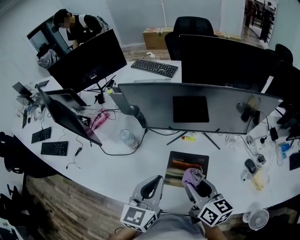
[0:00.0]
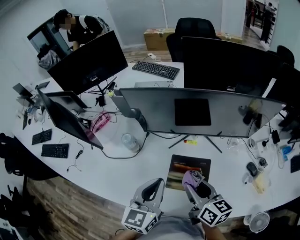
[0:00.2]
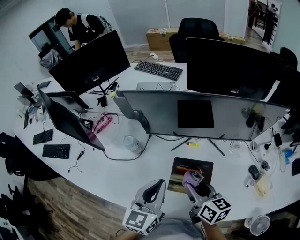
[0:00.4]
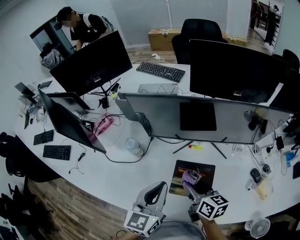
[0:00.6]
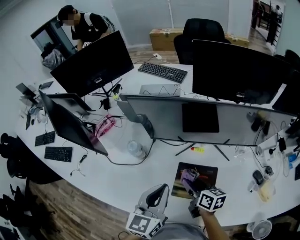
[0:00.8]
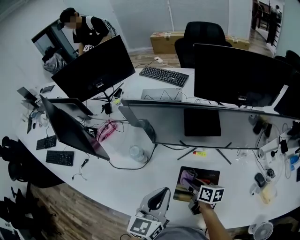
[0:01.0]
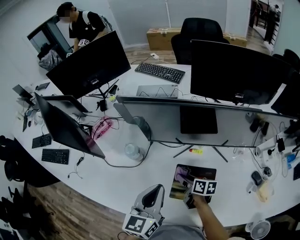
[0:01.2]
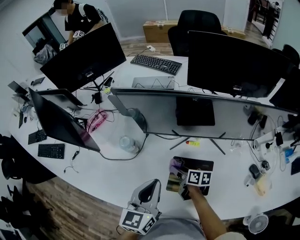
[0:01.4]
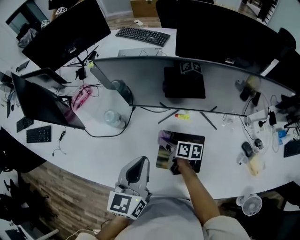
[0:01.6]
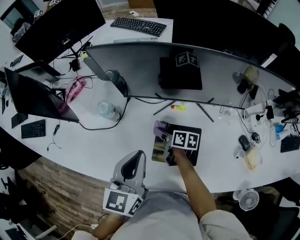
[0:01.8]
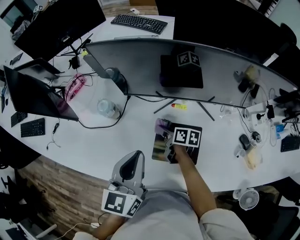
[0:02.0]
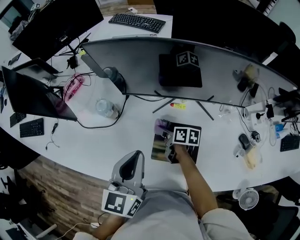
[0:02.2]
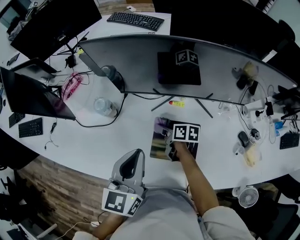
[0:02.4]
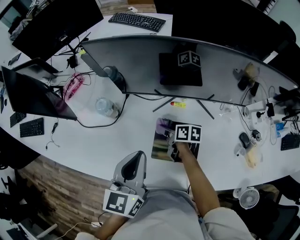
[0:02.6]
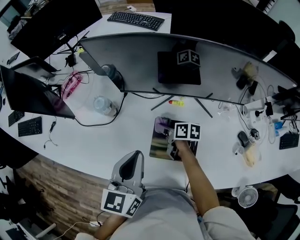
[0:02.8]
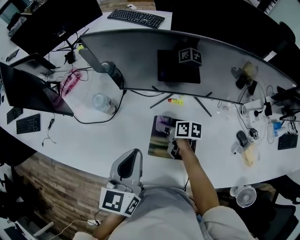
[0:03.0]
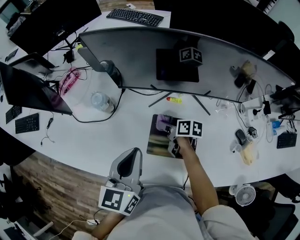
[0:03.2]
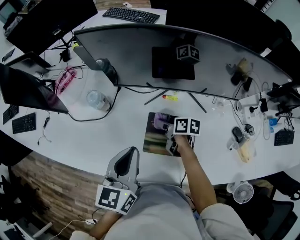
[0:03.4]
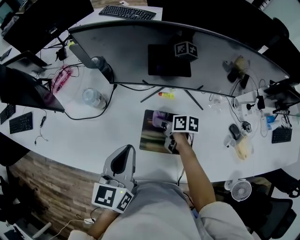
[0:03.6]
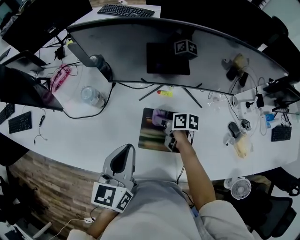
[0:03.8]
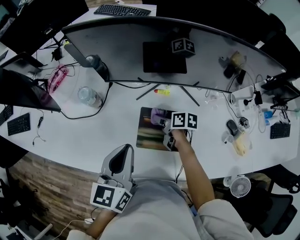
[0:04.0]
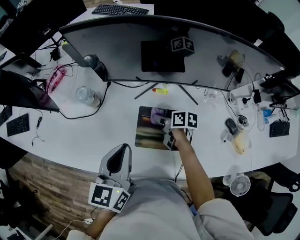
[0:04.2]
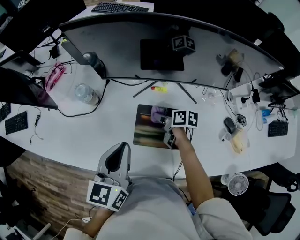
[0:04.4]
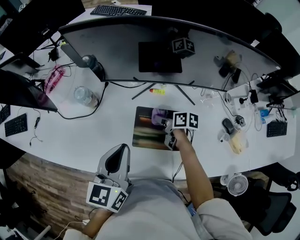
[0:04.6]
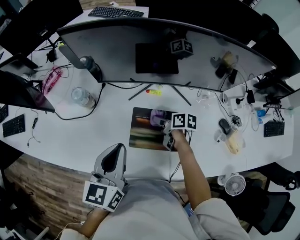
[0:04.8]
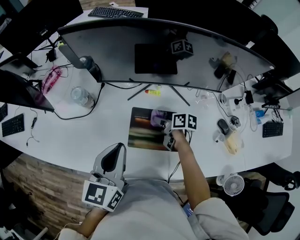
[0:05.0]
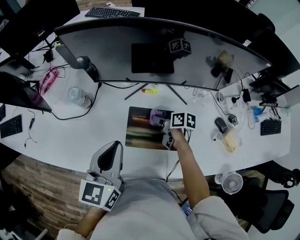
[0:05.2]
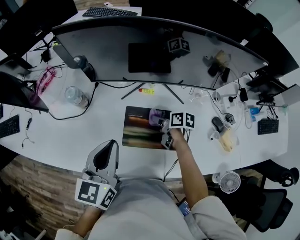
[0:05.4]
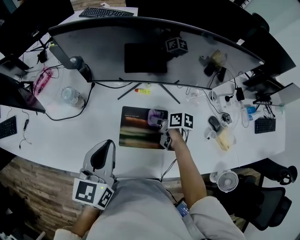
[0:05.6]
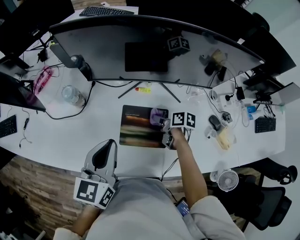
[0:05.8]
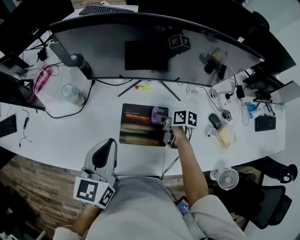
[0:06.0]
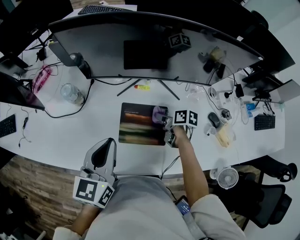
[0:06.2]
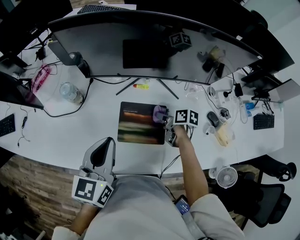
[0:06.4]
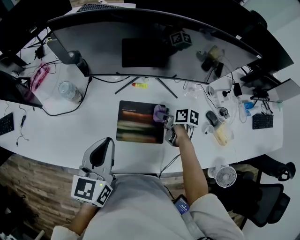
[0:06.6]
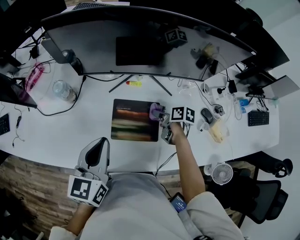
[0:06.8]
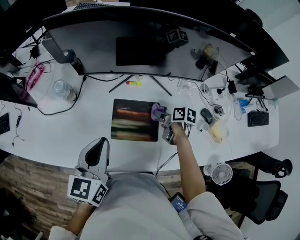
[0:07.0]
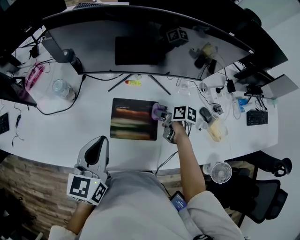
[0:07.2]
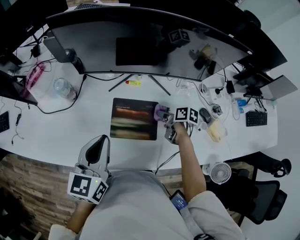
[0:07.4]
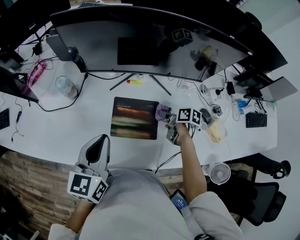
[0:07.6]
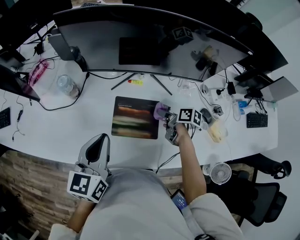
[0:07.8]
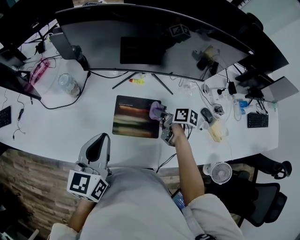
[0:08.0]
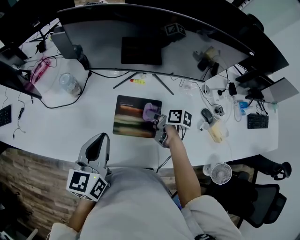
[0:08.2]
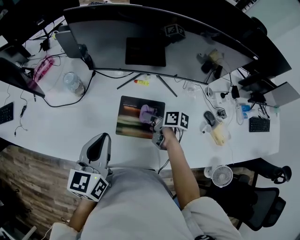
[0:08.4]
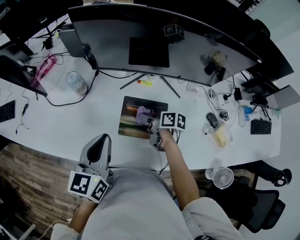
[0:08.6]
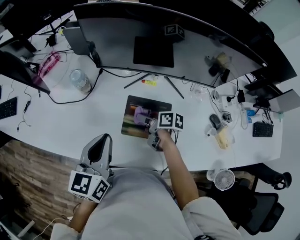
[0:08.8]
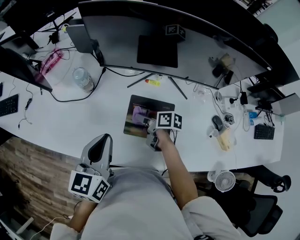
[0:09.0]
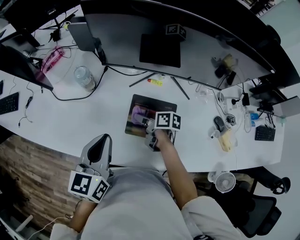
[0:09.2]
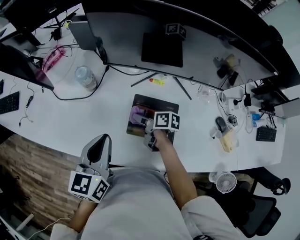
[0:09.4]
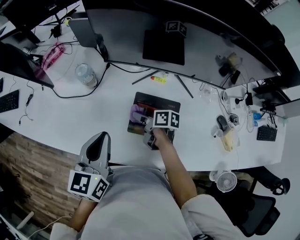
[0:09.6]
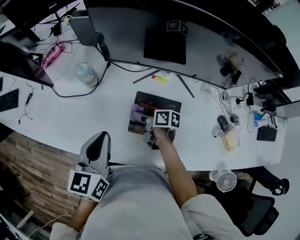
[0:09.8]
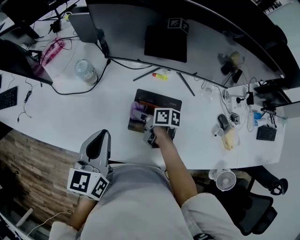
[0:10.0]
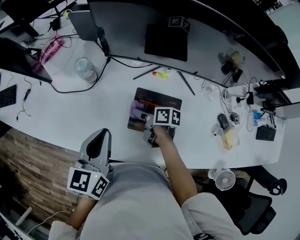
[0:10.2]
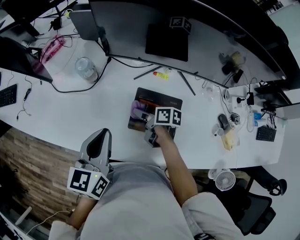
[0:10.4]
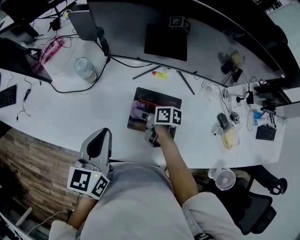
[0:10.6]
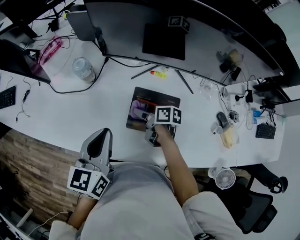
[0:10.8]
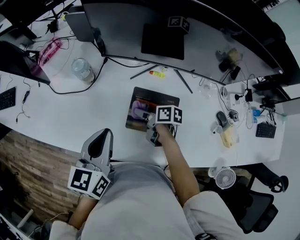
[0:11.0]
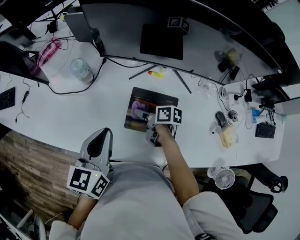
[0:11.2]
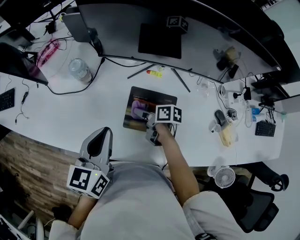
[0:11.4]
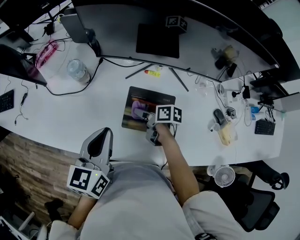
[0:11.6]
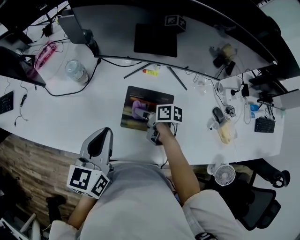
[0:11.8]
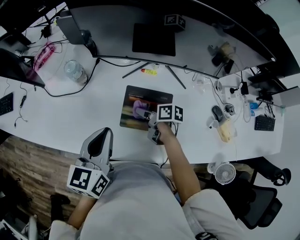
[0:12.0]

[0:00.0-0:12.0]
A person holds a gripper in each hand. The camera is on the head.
0:00.0 to 0:01.6: The left gripper is displaced forward by approximately 5 cm, while the right gripper heads downward and forward, covering about 25 cm, and swivels roughly 30 degrees.
0:01.6 to 0:03.0: The grippers make only small movements.
0:03.0 to 0:04.4: The right gripper changes place by approximately 5 cm.
0:04.4 to 0:06.0: The right gripper shifts approximately 5 cm to the right.
0:06.0 to 0:07.6: The right gripper moves to the right, some 5 cm.
0:07.6 to 0:09.0: The right gripper shifts about 20 cm to the left, while the left gripper heads to the left, covering roughly 5 cm.
0:09.0 to 0:10.4: The grippers stay close to where they were, moving slightly.
0:10.4 to 0:12.0: The right gripper heads to the right, covering roughly 5 cm.

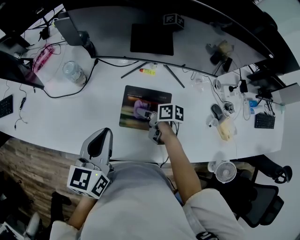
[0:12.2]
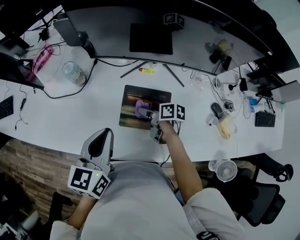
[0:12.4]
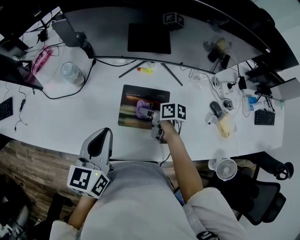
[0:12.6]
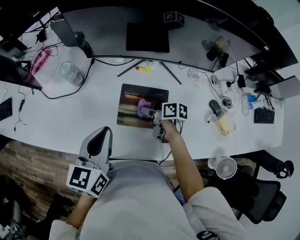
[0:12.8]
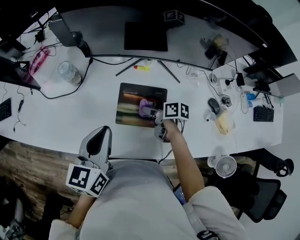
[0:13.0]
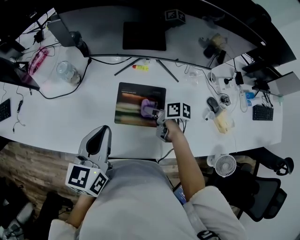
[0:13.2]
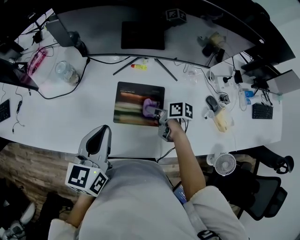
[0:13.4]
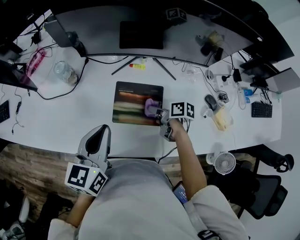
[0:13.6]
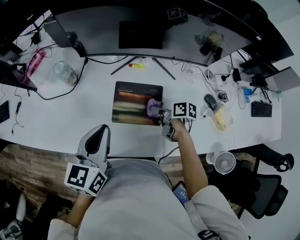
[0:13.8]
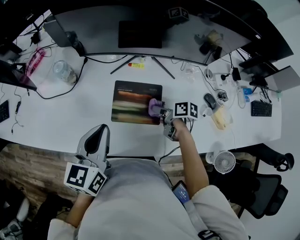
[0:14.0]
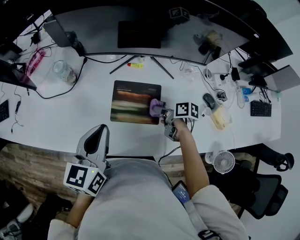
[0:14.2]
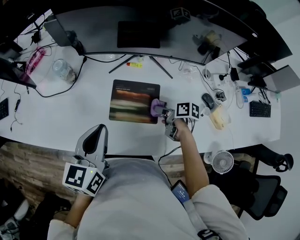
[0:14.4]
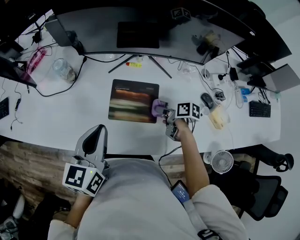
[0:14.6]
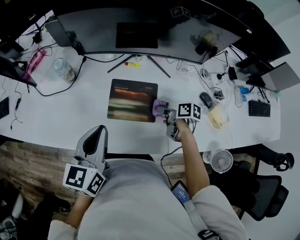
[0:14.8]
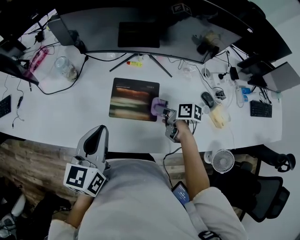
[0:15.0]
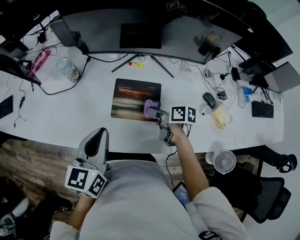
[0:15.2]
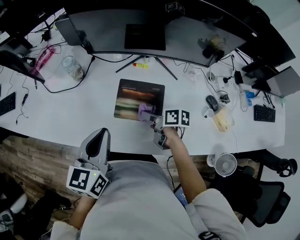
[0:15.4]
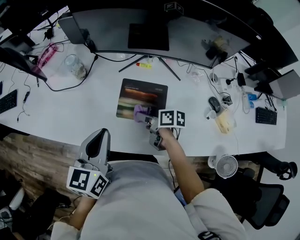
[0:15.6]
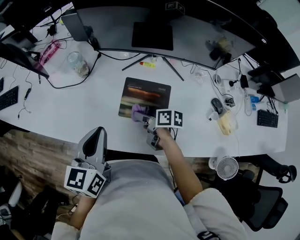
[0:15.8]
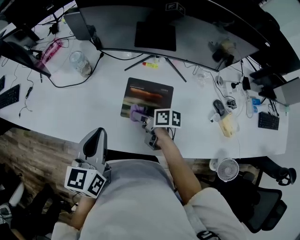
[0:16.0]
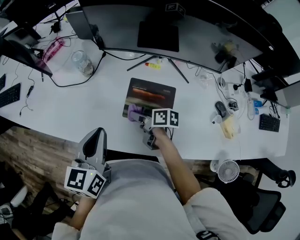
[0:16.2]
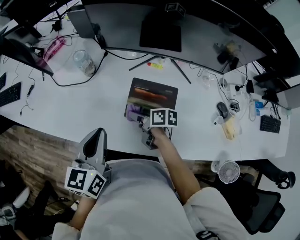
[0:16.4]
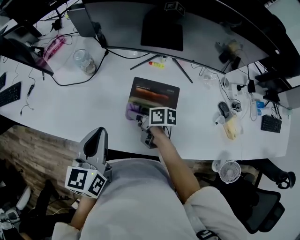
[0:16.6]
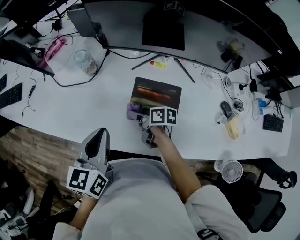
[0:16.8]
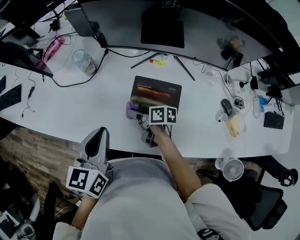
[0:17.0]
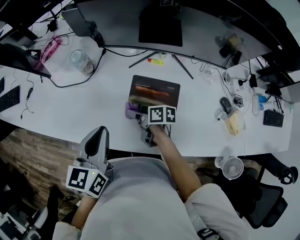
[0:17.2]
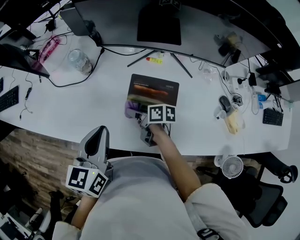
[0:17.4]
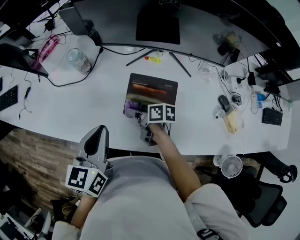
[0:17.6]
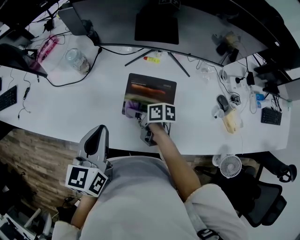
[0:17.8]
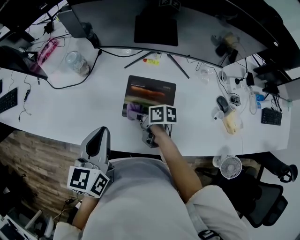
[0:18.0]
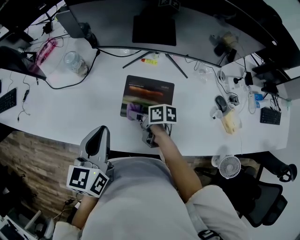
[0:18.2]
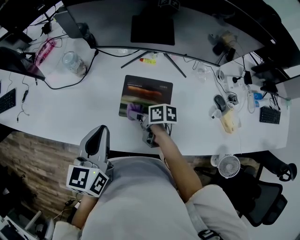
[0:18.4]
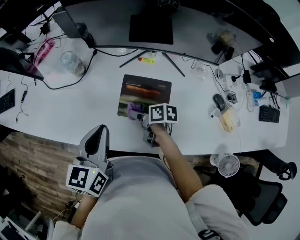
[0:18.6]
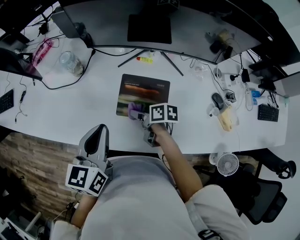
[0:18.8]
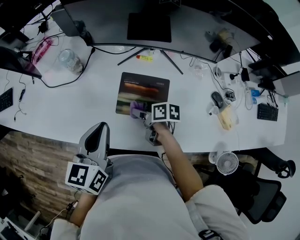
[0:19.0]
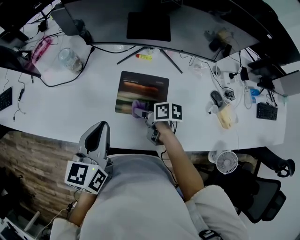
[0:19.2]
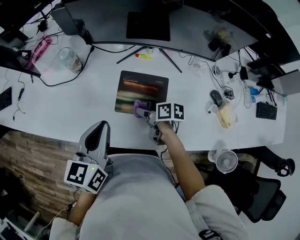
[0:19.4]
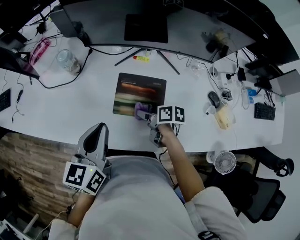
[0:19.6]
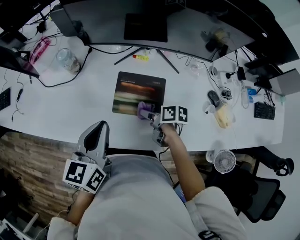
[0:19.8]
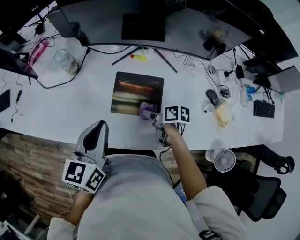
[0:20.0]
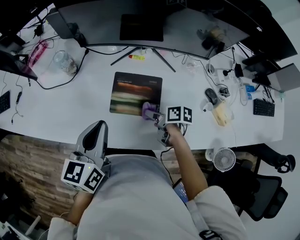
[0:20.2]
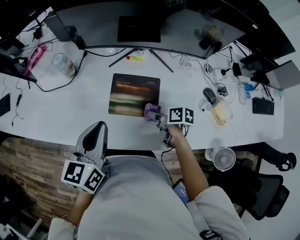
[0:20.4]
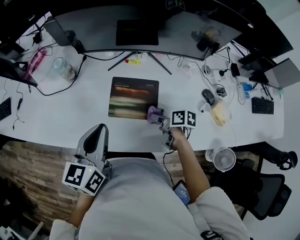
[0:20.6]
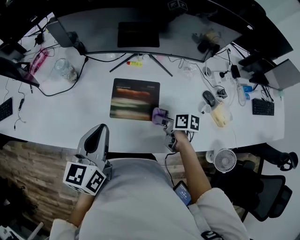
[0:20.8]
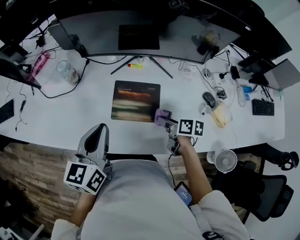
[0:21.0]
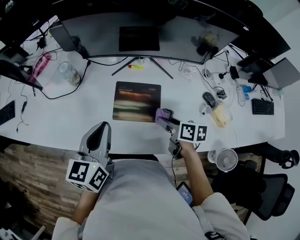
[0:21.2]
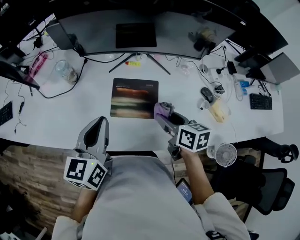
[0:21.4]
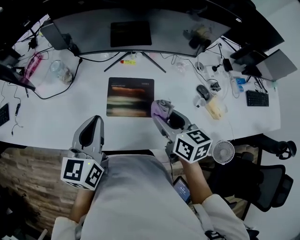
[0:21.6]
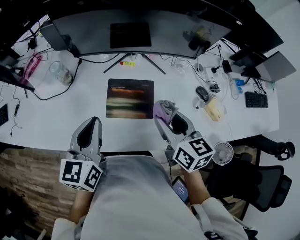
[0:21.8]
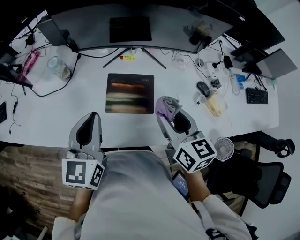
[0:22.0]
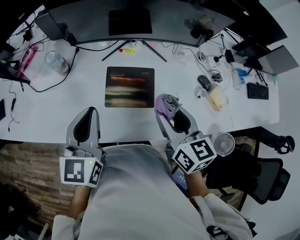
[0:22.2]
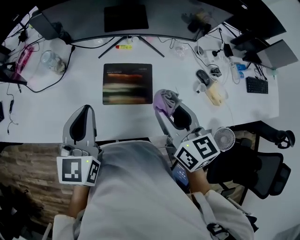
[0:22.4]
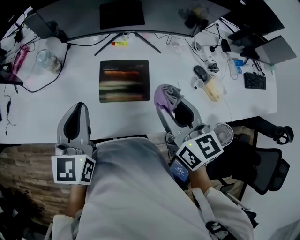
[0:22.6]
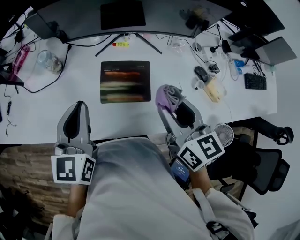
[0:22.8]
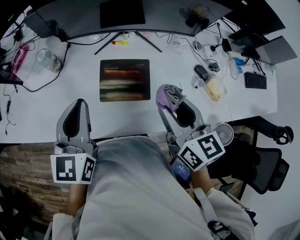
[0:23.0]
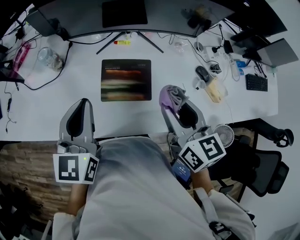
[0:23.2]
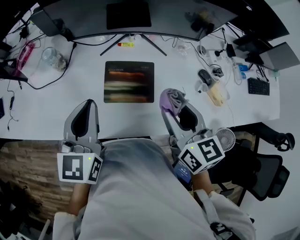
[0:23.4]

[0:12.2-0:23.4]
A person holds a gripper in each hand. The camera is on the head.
0:12.2 to 0:13.8: The right gripper goes some 10 cm to the right and backward.
0:13.8 to 0:15.4: The left gripper is displaced backward by about 5 cm, while the right gripper shifts about 5 cm to the left.
0:15.4 to 0:17.0: The left gripper moves approximately 5 cm. The right gripper travels to the left and forward by roughly 15 cm.
0:17.0 to 0:18.6: The right gripper ends up some 5 cm from where it was.
0:18.6 to 0:20.2: The right gripper travels to the right and backward by some 10 cm.
0:20.2 to 0:21.8: The right gripper is displaced upward by approximately 20 cm, and turns by approximately 50 degrees.
0:21.8 to 0:23.4: There are only small adjustments of the grippers.

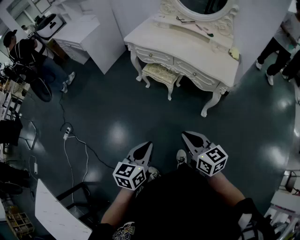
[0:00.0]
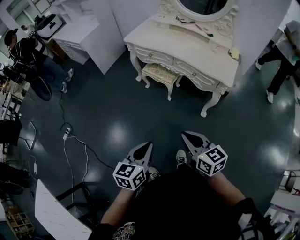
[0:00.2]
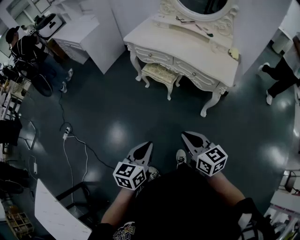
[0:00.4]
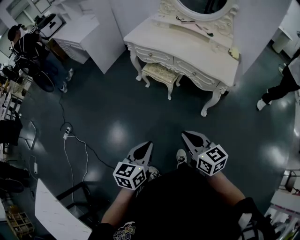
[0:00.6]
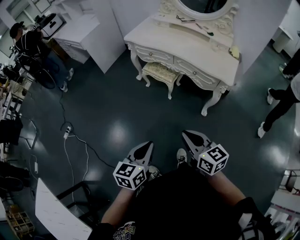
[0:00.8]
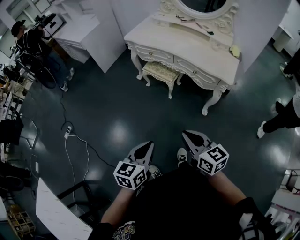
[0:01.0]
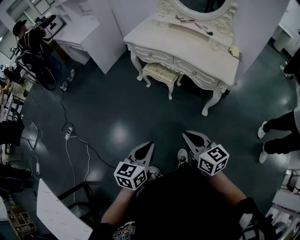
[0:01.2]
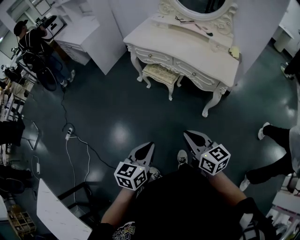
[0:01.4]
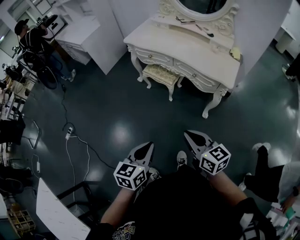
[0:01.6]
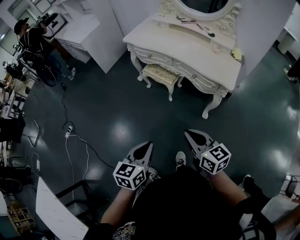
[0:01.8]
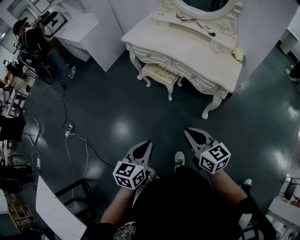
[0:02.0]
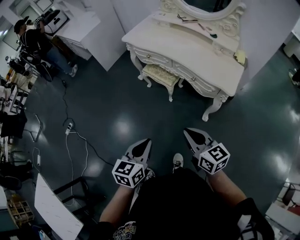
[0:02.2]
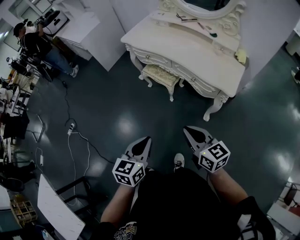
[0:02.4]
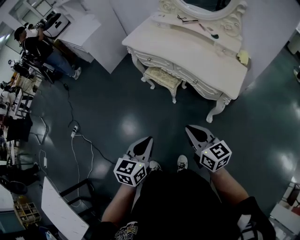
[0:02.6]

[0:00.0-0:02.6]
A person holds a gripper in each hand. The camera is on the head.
0:00.0 to 0:01.2: Both grippers stay about where they are.
0:01.2 to 0:02.6: The two grippers go about 15 cm forward and to the right.
